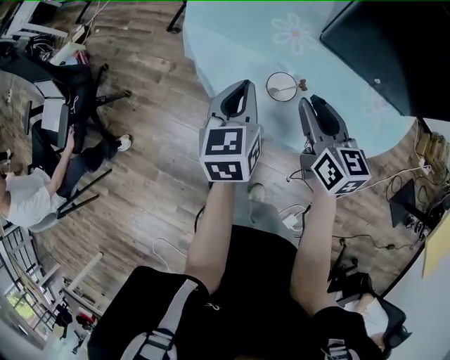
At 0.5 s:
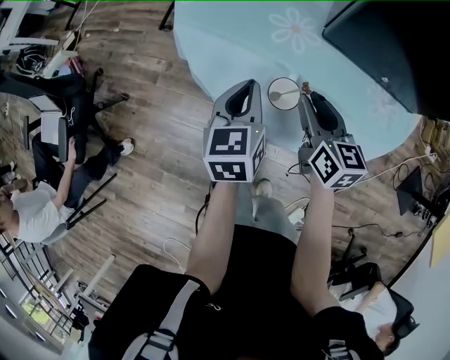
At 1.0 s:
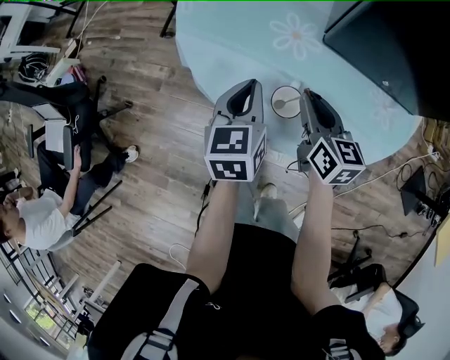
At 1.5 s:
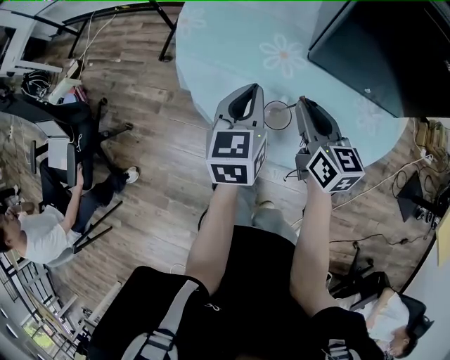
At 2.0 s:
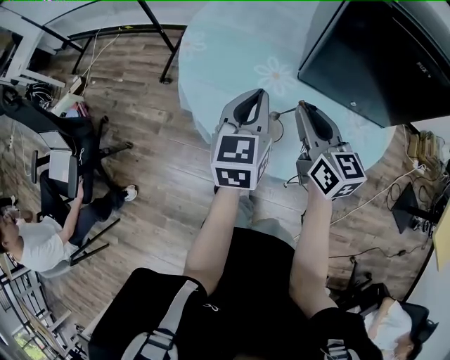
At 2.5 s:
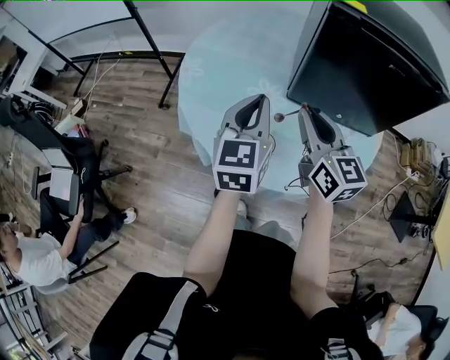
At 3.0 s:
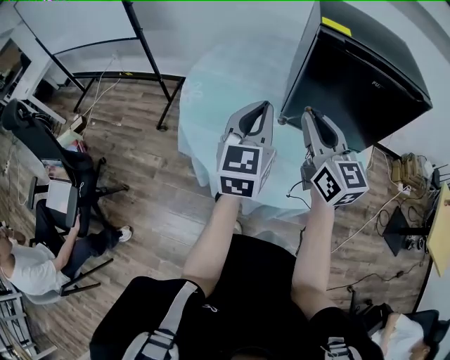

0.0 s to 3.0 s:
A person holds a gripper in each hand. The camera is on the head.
0.0 to 1.5 s: Both grippers move forward, some 5 cm.
1.5 to 3.0 s: Both grippers travel together upward, some 20 cm. The right gripper changes its angle by about 30 degrees; the left gripper swivels approximately 20 degrees.

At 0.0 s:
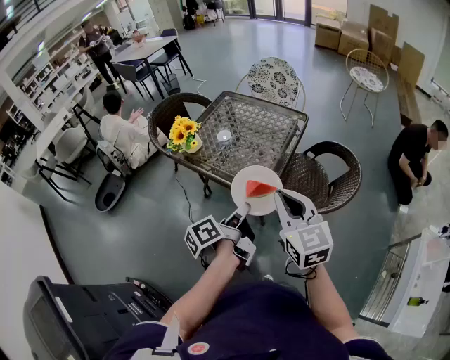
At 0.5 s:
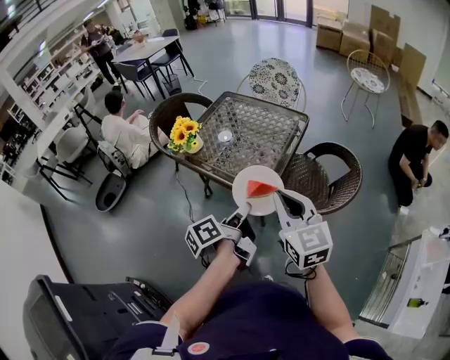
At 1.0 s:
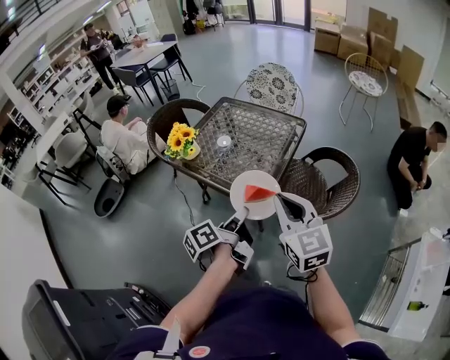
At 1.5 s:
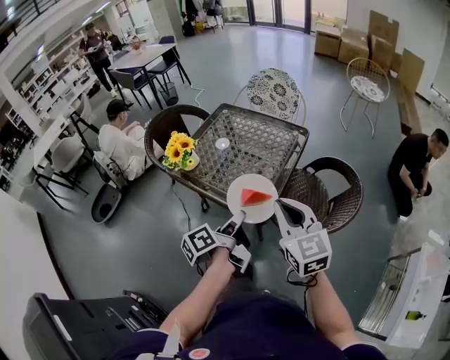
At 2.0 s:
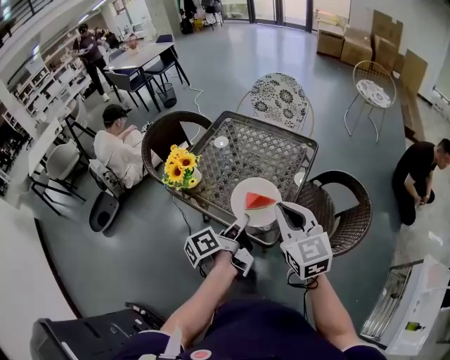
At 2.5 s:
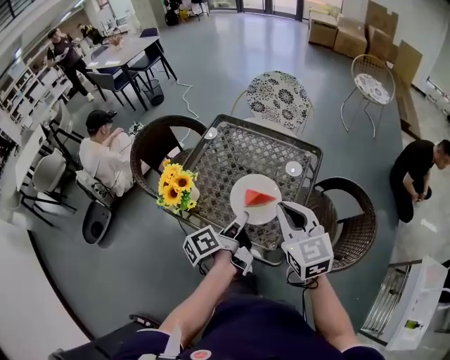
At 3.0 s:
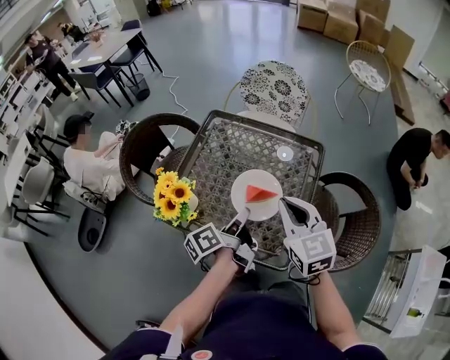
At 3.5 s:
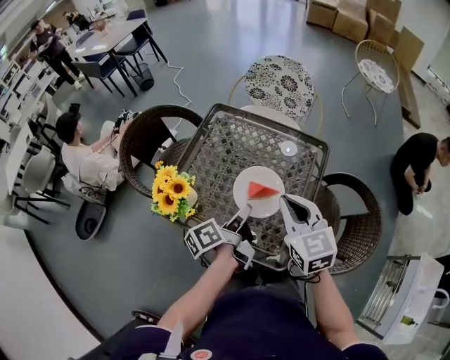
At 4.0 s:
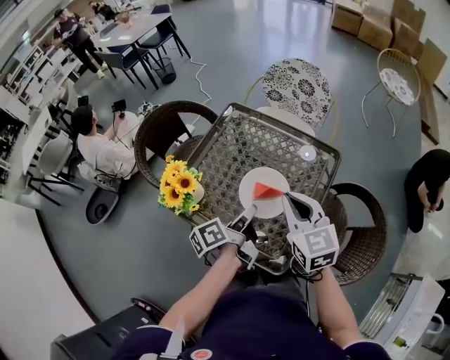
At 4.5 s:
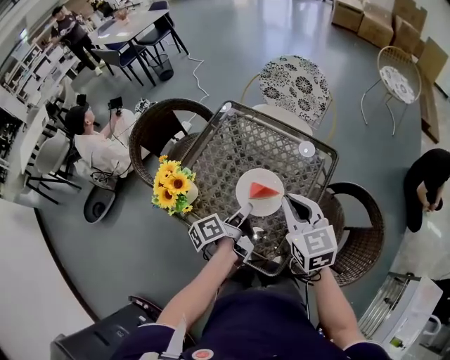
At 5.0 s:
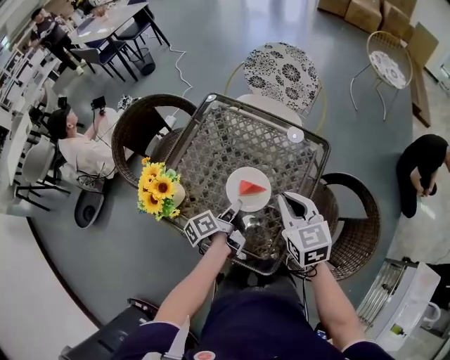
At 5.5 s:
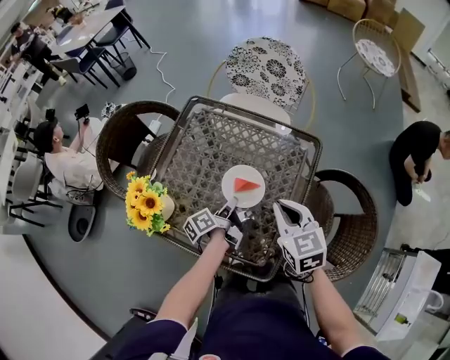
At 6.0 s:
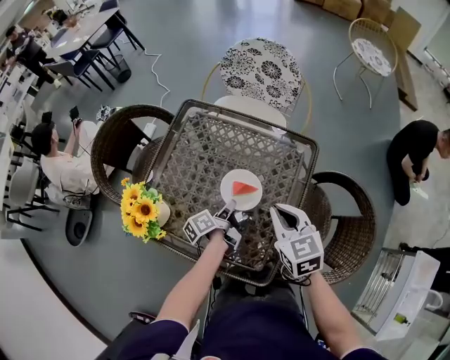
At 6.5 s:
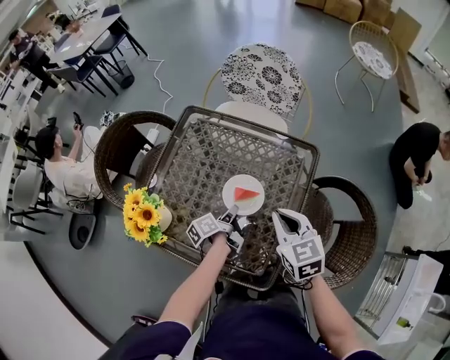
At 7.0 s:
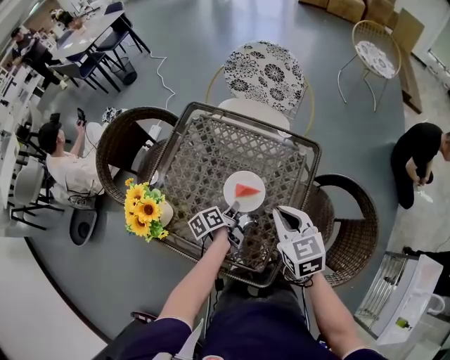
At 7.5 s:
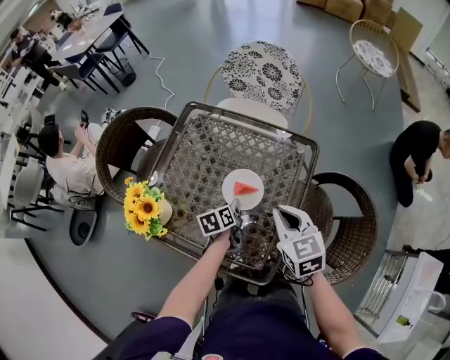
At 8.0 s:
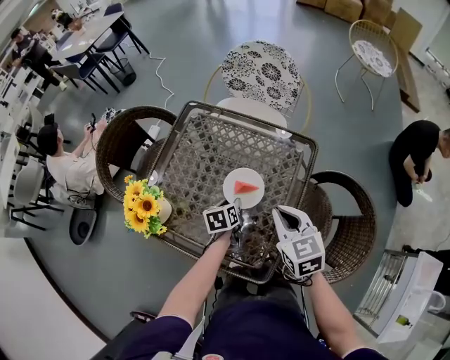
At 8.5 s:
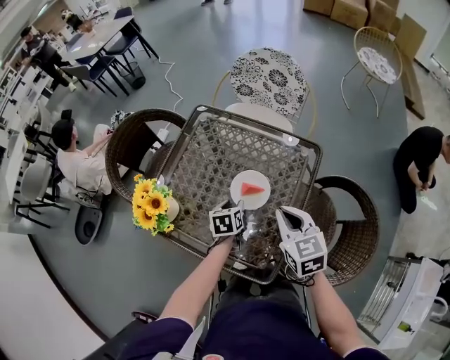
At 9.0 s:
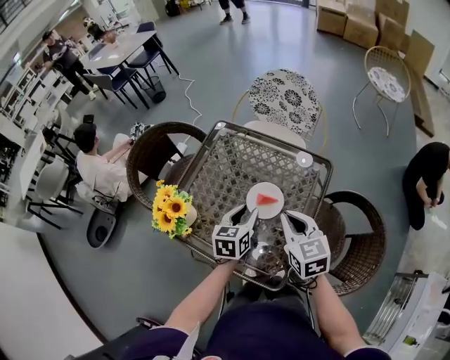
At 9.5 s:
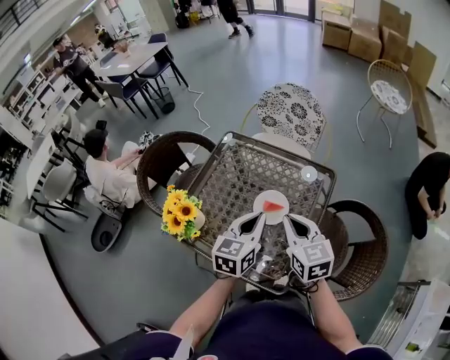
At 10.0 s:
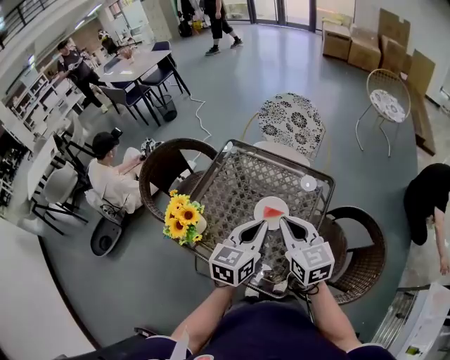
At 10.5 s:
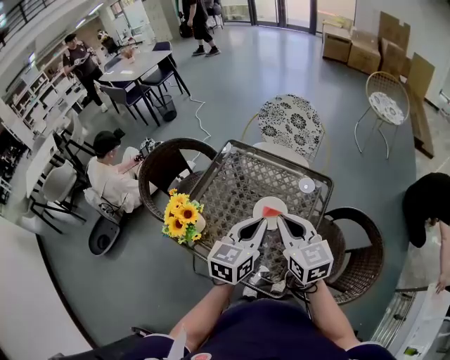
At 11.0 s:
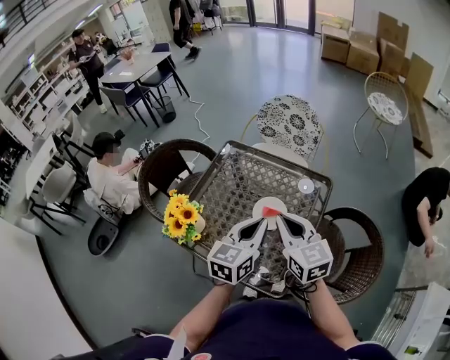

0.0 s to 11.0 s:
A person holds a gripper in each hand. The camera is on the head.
0.0 to 2.0 s: Both grippers travel together forward, approximately 15 cm.
2.0 to 3.5 s: The grippers both shift forward by some 20 cm.
3.5 to 5.5 s: The right gripper goes roughly 15 cm downward, to the right and forward. The left gripper is displaced downward and forward by approximately 20 cm.
5.5 to 7.5 s: The left gripper swivels about 40 degrees.
7.5 to 9.0 s: The left gripper is displaced upward by some 15 cm, and rotates some 30 degrees, while the right gripper shifts by about 5 cm.
9.0 to 11.0 s: The left gripper heads upward, covering approximately 15 cm, and closes up, while the right gripper moves upward, roughly 10 cm.

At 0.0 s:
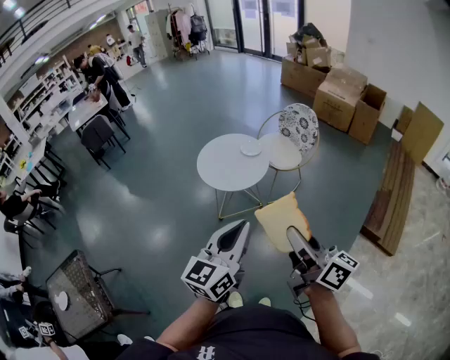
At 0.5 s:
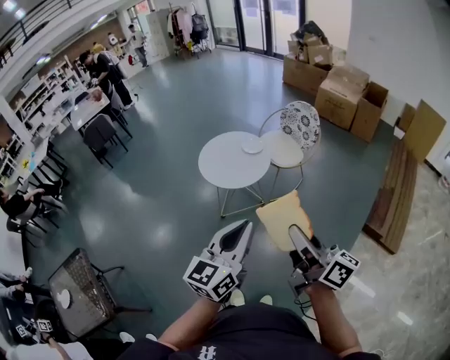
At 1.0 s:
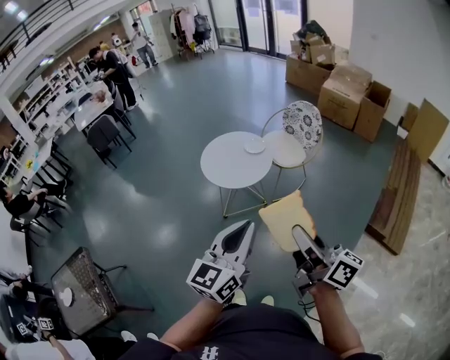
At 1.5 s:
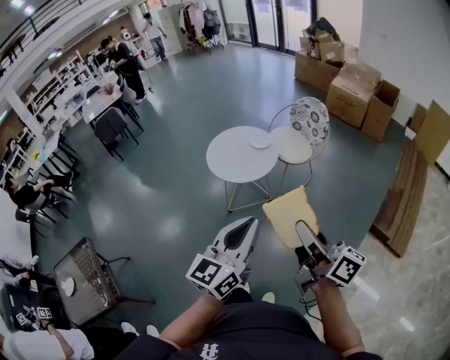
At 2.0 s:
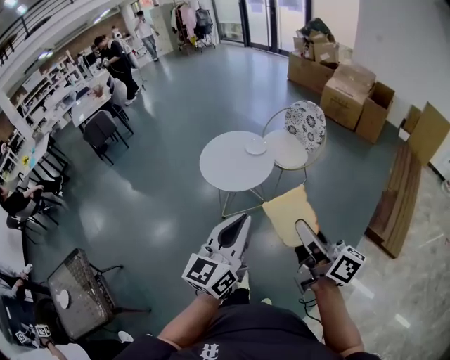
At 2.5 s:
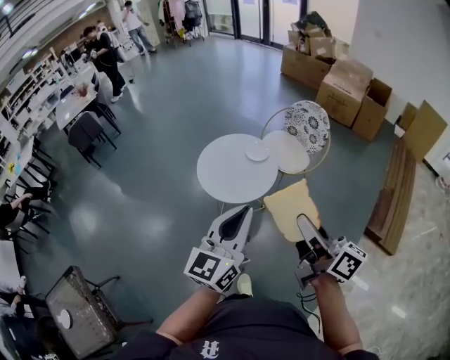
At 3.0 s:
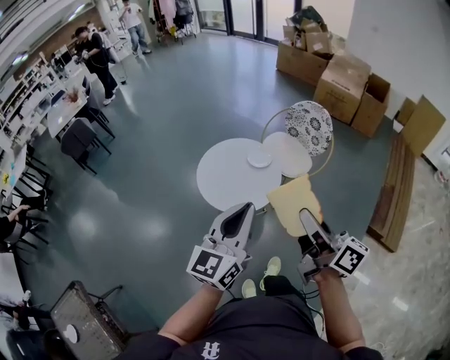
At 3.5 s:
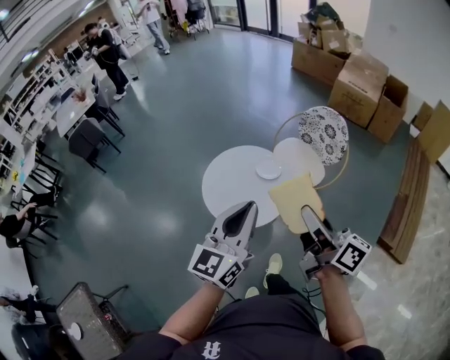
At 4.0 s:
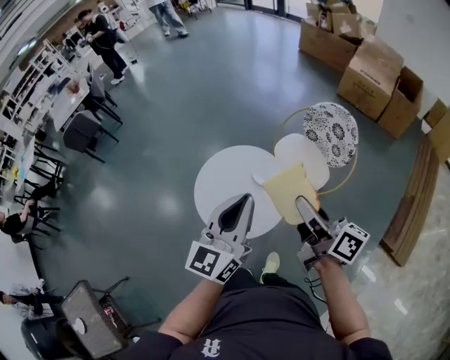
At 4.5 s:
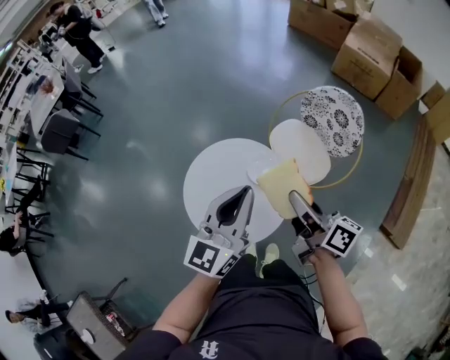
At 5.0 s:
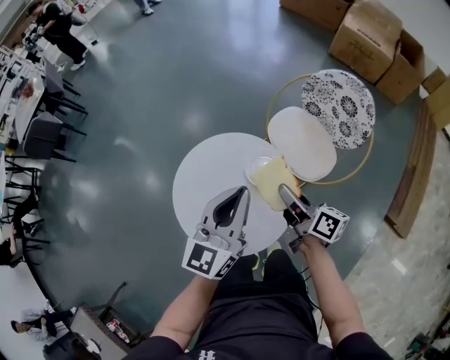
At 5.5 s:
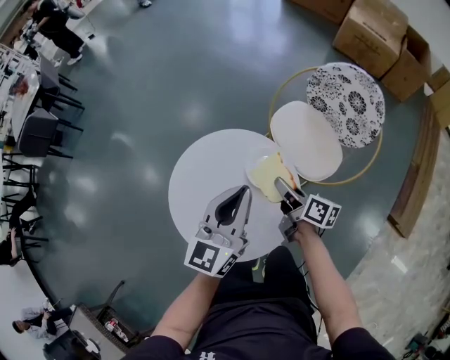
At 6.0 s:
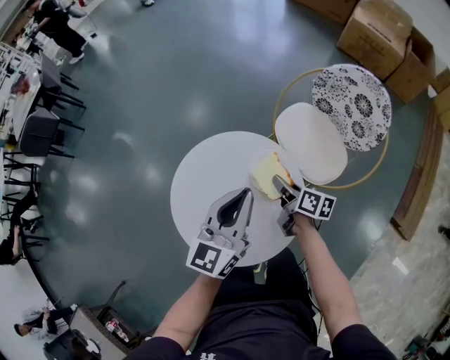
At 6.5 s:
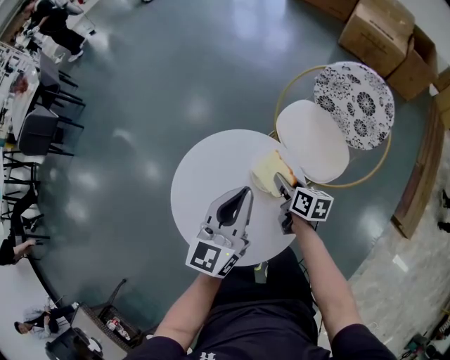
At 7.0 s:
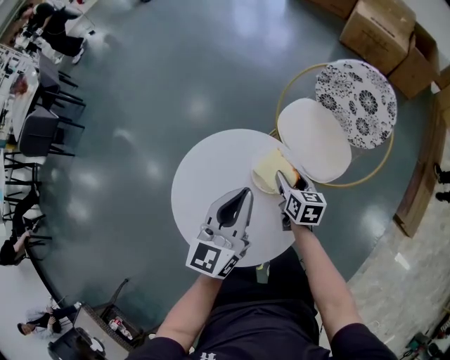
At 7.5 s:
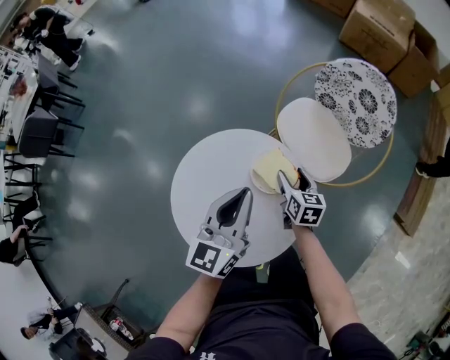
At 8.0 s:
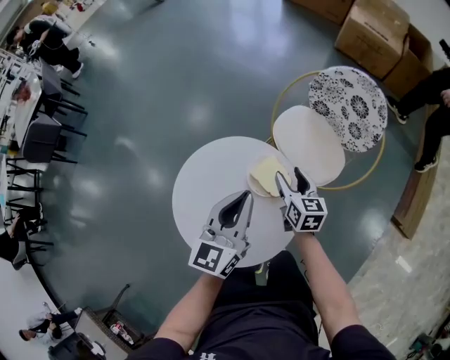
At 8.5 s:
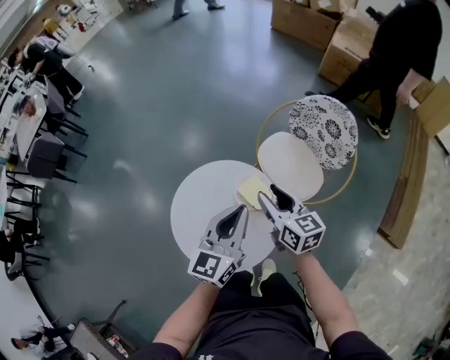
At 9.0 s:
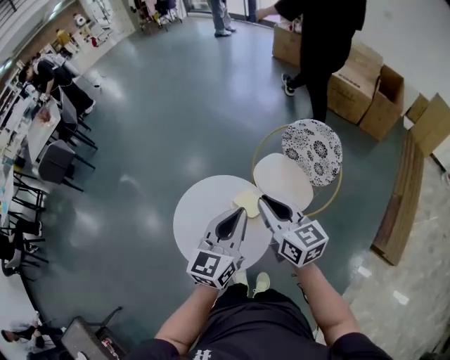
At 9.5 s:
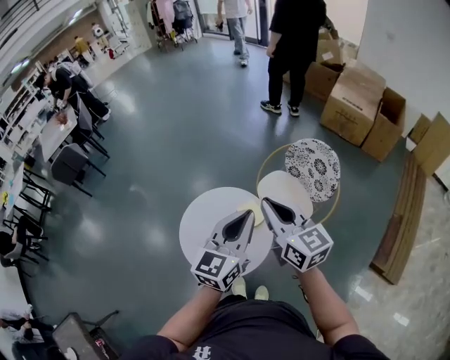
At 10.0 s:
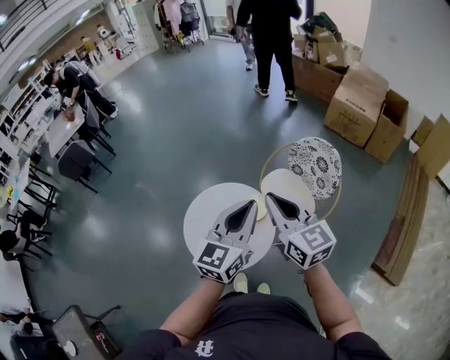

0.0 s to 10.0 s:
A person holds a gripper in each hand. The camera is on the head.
0.0 to 2.0 s: The right gripper shifts roughly 5 cm forward. Meanwhile the left gripper changes place by about 5 cm.
2.0 to 4.0 s: Both grippers are carried forward, roughly 50 cm.
4.0 to 6.0 s: Both grippers move downward and forward, about 40 cm. The right gripper angles its fingers downward, by about 30 degrees.
6.0 to 8.0 s: The right gripper shifts by some 5 cm, changes its angle by roughly 40 degrees, and opens its fingers.
8.0 to 10.0 s: The left gripper travels upward and backward by some 30 cm. Meanwhile the right gripper moves upward, some 40 cm, rotates approximately 40 degrees, and closes.

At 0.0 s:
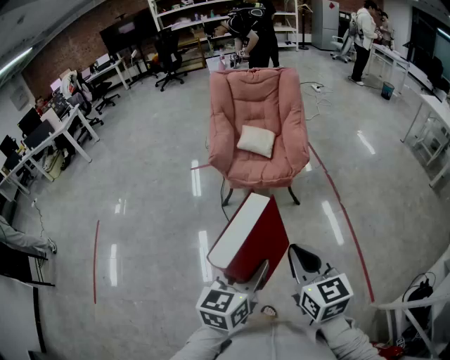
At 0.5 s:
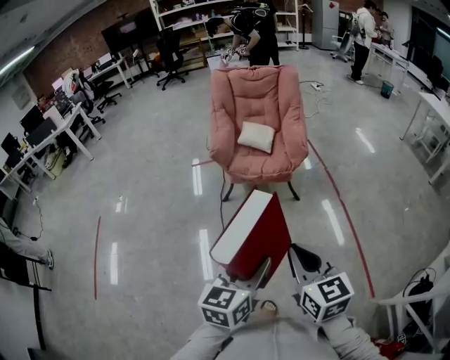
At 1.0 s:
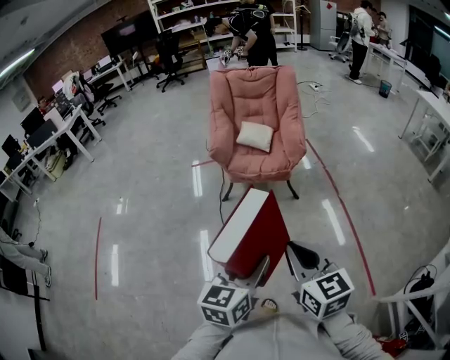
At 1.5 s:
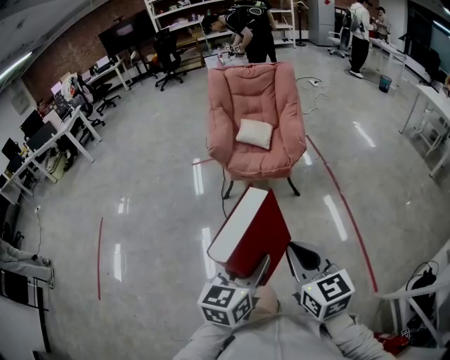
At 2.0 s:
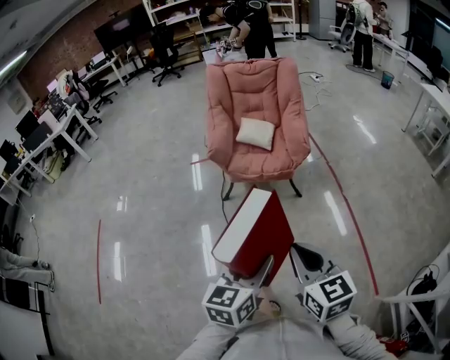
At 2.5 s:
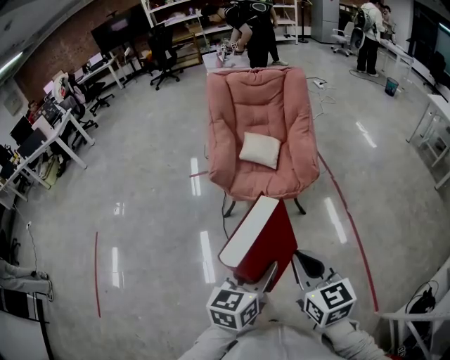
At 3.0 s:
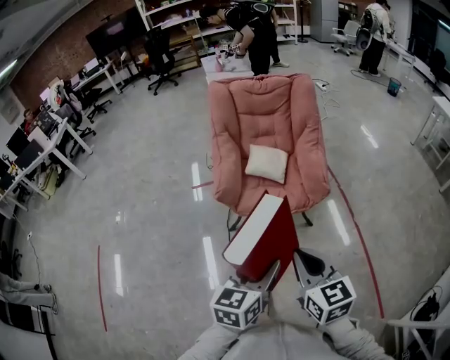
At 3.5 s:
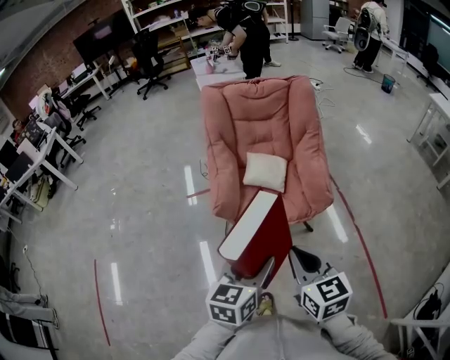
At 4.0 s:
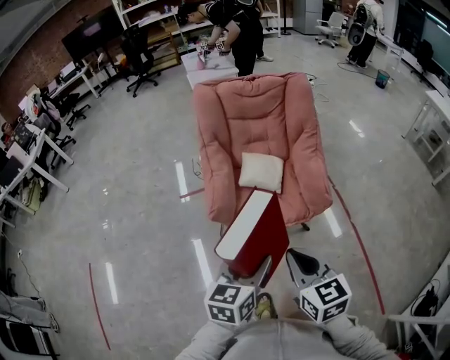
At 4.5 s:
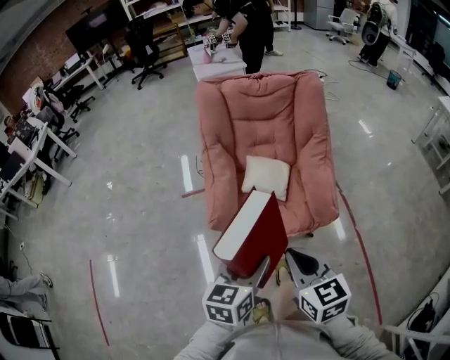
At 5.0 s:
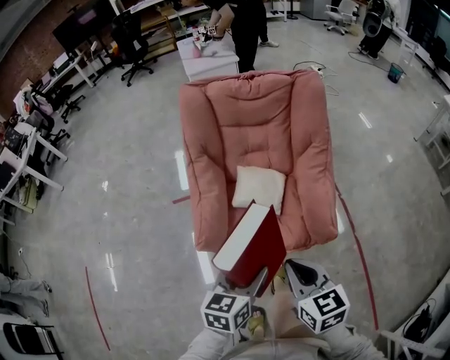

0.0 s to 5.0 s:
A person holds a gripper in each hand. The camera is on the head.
0.0 to 2.5 s: Both grippers move forward, approximately 15 cm.
2.5 to 5.0 s: The grippers both shift forward by some 40 cm.
